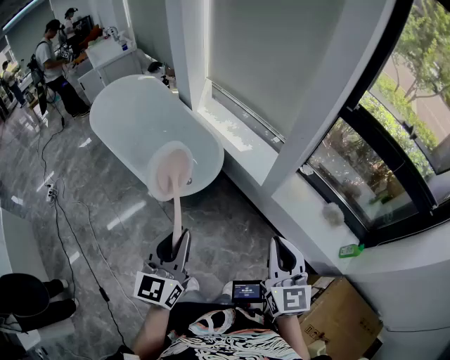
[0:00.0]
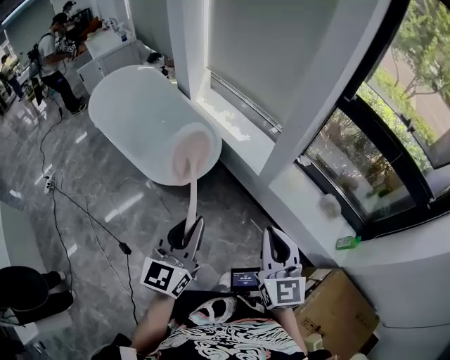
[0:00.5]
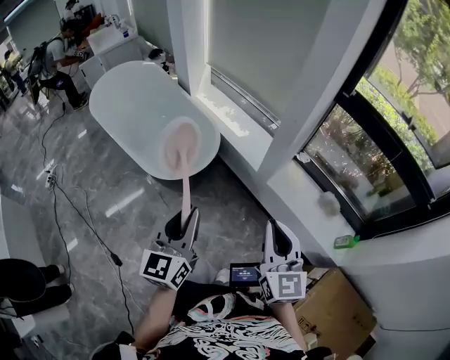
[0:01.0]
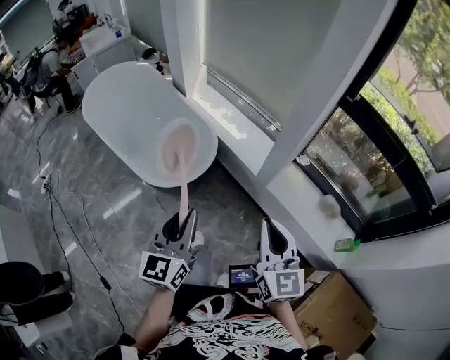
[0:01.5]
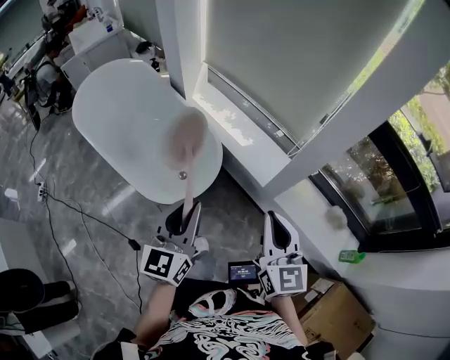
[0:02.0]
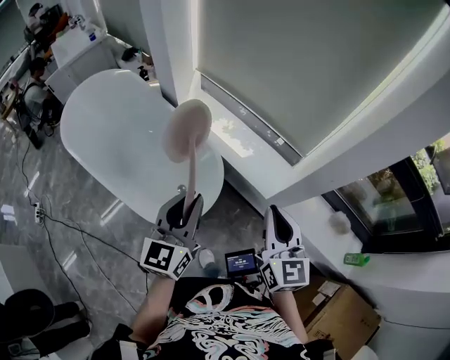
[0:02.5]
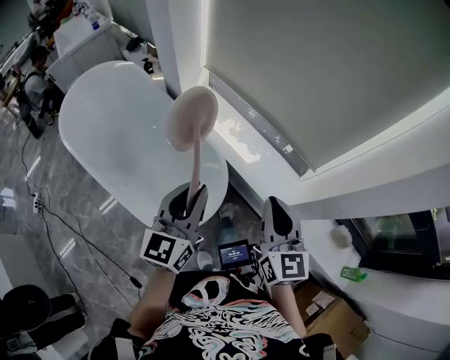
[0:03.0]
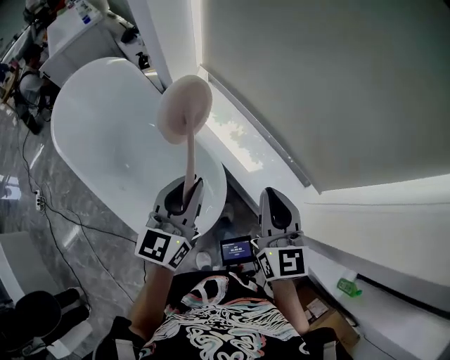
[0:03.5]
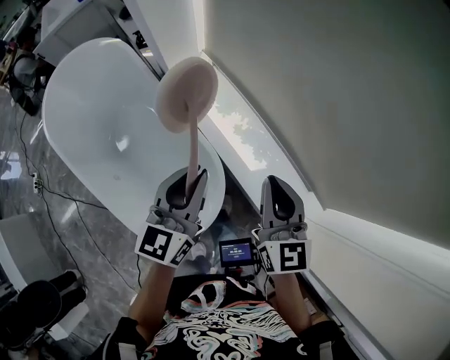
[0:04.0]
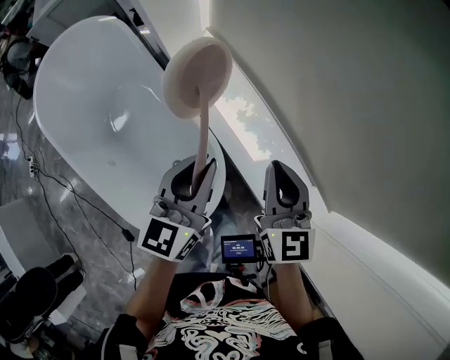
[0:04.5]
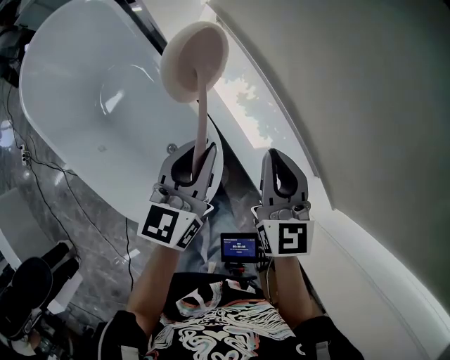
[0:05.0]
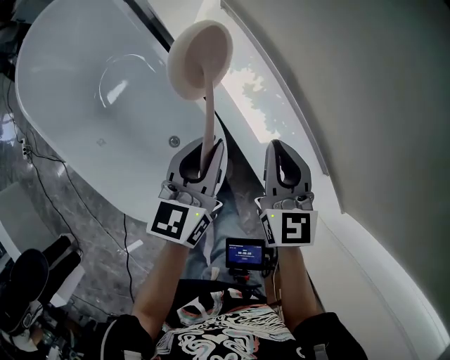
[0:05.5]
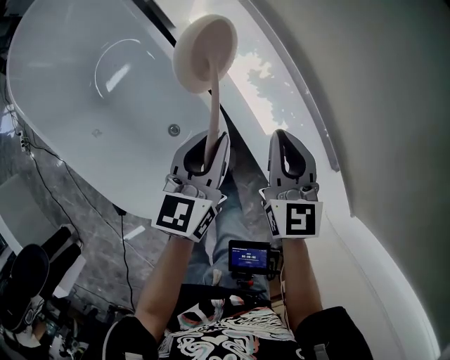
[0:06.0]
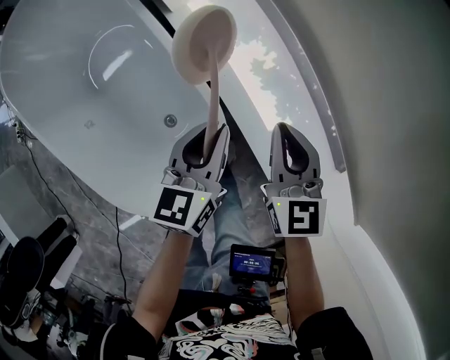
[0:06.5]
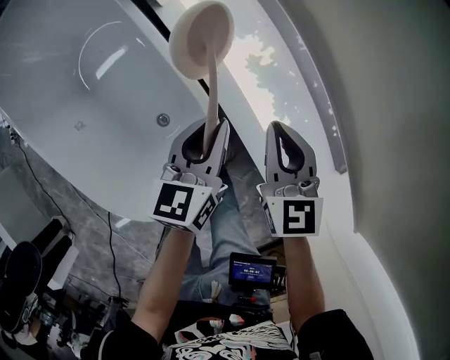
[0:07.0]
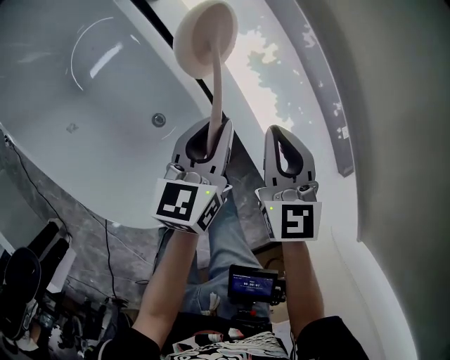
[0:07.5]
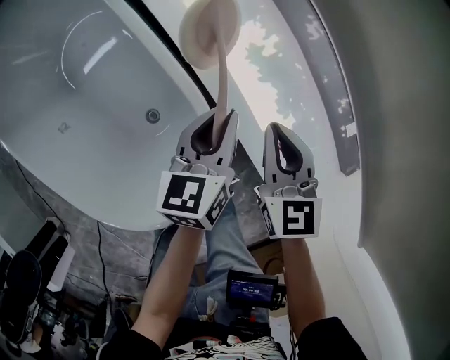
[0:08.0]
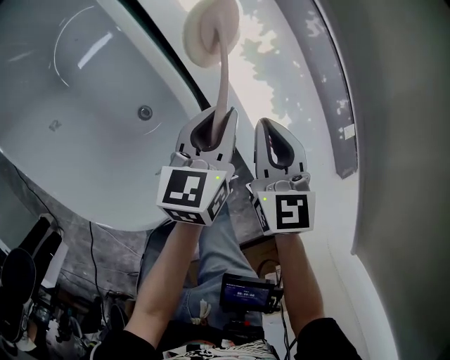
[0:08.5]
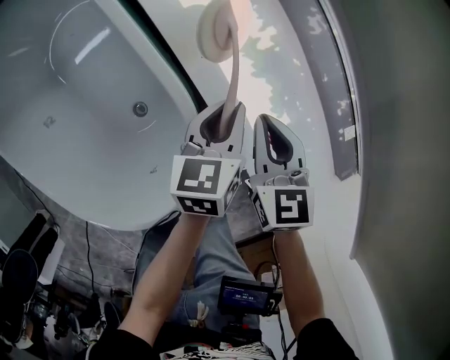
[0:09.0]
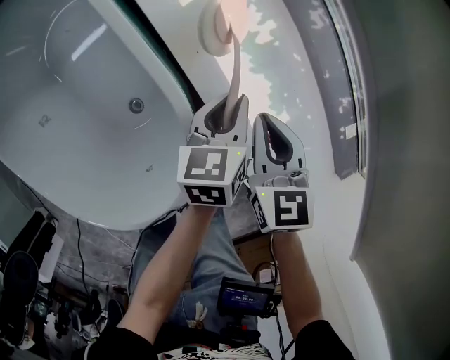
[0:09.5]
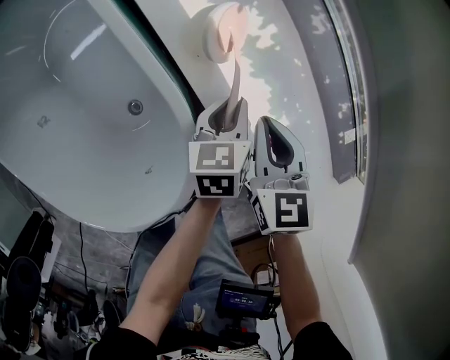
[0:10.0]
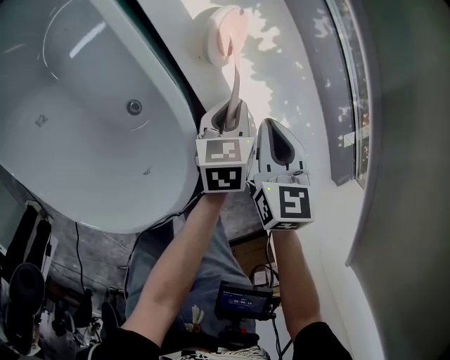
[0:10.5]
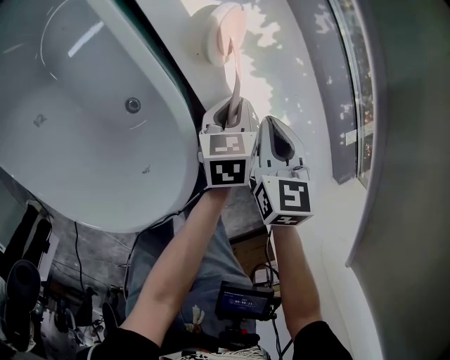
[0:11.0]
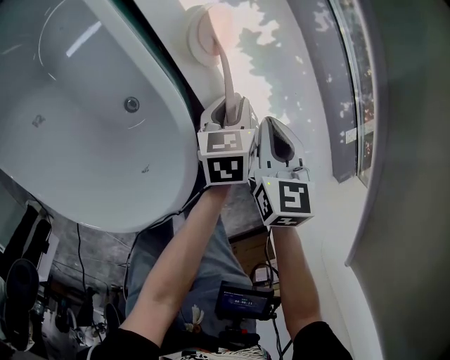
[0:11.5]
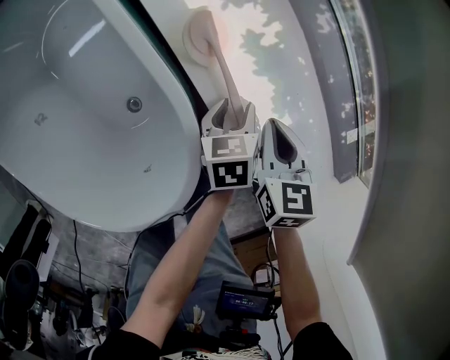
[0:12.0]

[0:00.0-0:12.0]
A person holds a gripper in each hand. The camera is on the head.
0:00.0 to 0:02.0: The grippers both shift forward by some 25 cm.
0:02.0 to 0:04.0: The two grippers travel together, forward, roughly 50 cm.
0:04.0 to 0:06.0: Both grippers travel together downward, some 25 cm.
0:06.0 to 0:08.0: The grippers both shift downward by approximately 15 cm.
0:08.0 to 0:10.0: The right gripper shifts roughly 5 cm downward. The left gripper shifts about 15 cm downward and to the right.
0:10.0 to 0:12.0: The left gripper ends up approximately 5 cm from where it was, and opens its fingers. Meanwhile the right gripper ends up roughly 5 cm from where it was.

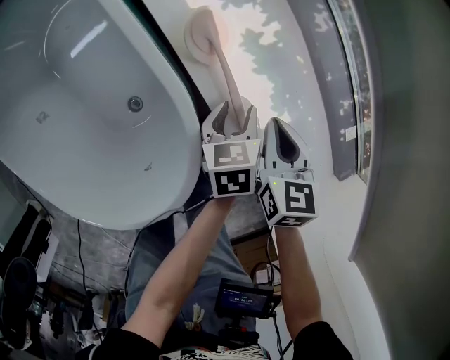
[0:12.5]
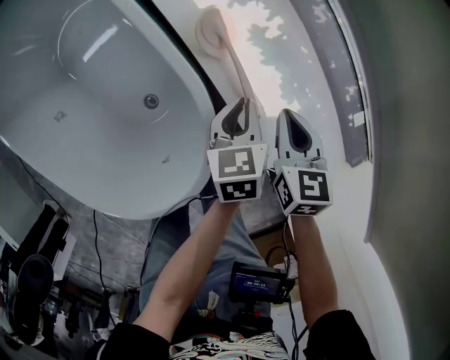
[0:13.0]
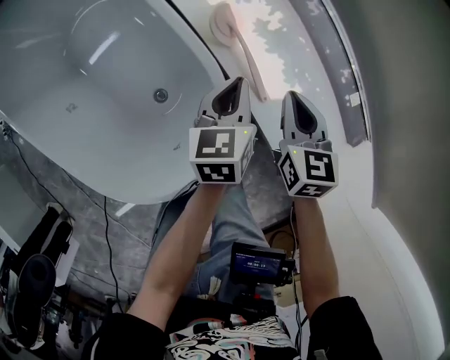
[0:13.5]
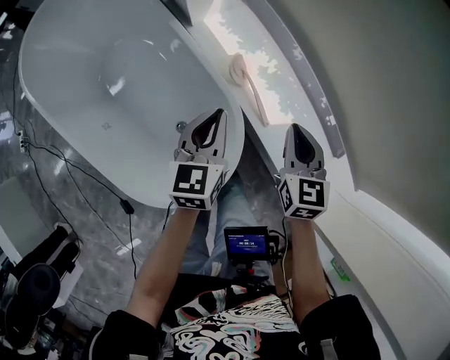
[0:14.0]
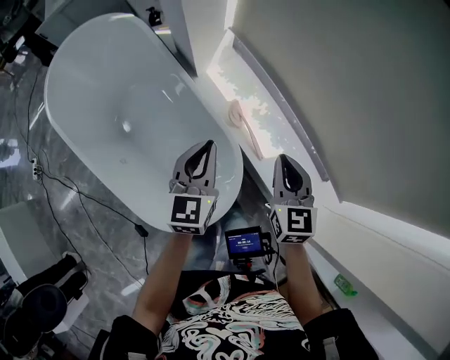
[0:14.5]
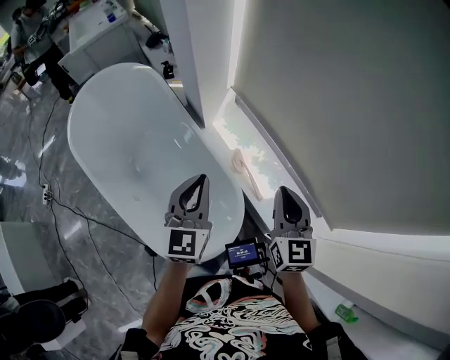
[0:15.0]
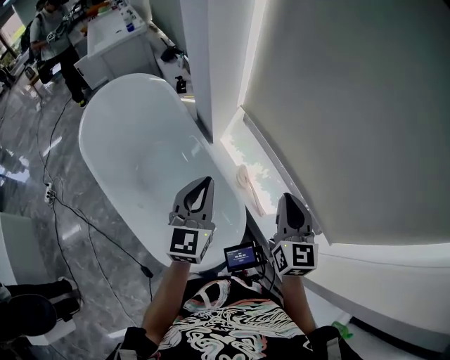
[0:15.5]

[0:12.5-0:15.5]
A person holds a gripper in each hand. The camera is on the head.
0:12.5 to 0:14.0: The right gripper shifts about 30 cm upward, and turns by about 20 degrees. The left gripper moves upward and to the left, roughly 40 cm, tips its fingers upward by roughly 30 degrees, and closes.
0:14.0 to 0:15.5: Both grippers travel together upward, about 25 cm. The left gripper turns by approximately 30 degrees; the right gripper rotates approximately 20 degrees.

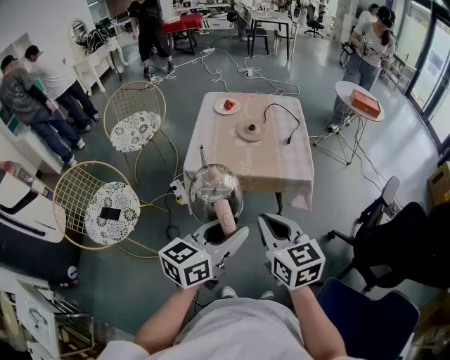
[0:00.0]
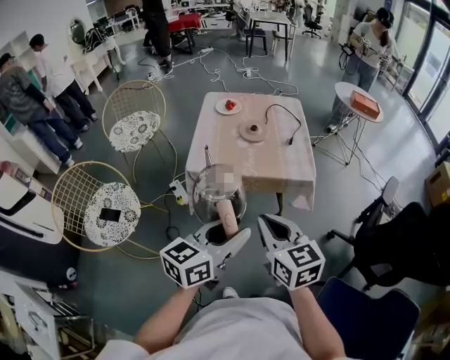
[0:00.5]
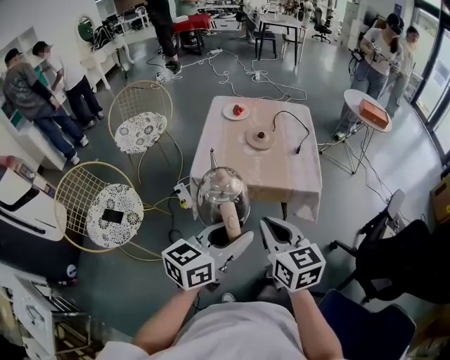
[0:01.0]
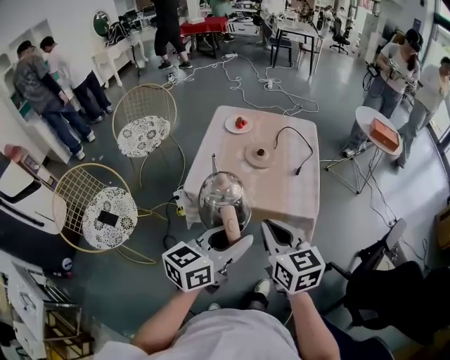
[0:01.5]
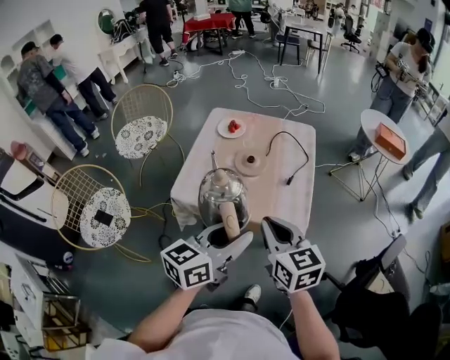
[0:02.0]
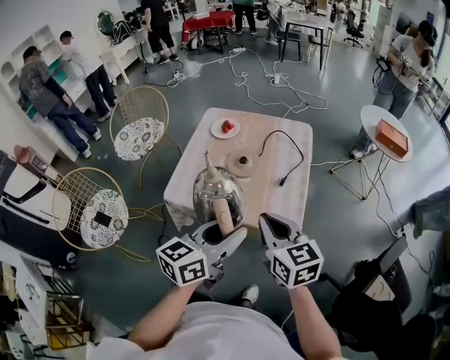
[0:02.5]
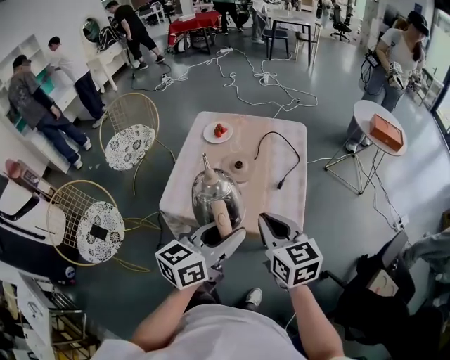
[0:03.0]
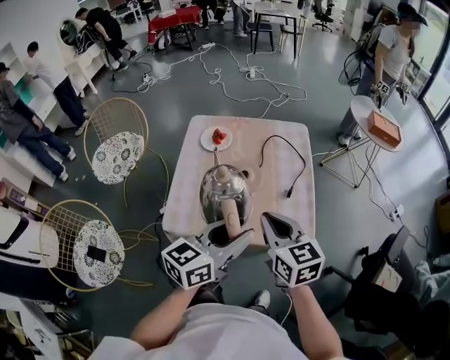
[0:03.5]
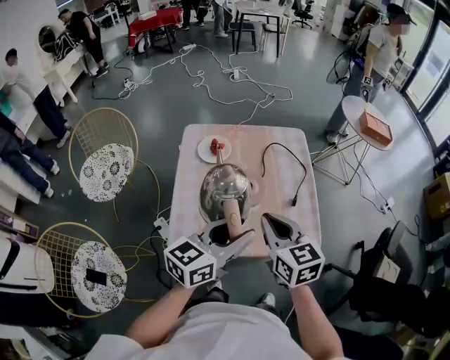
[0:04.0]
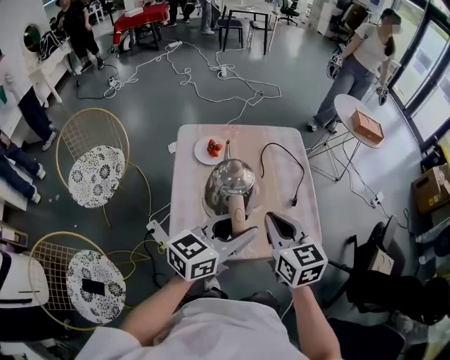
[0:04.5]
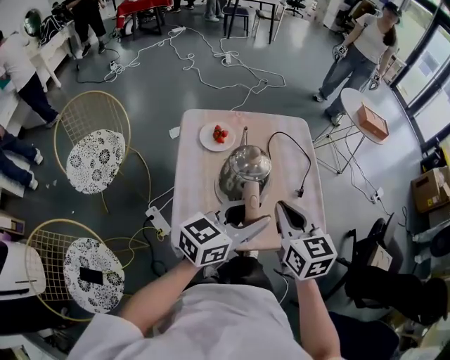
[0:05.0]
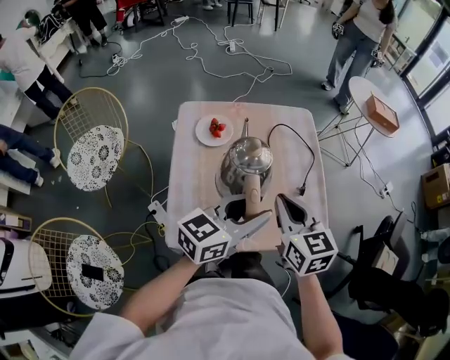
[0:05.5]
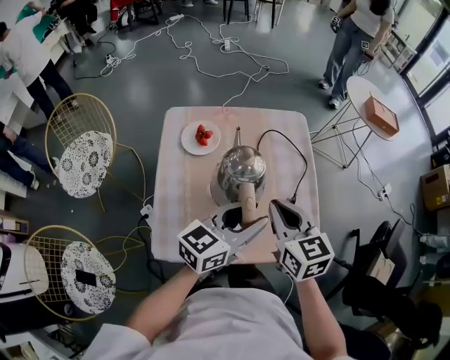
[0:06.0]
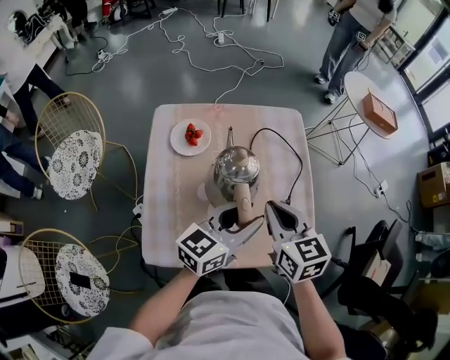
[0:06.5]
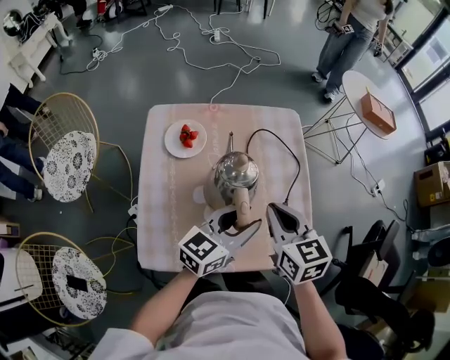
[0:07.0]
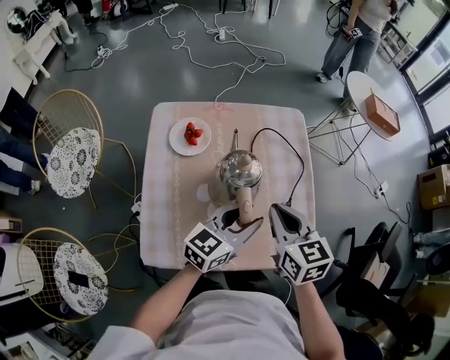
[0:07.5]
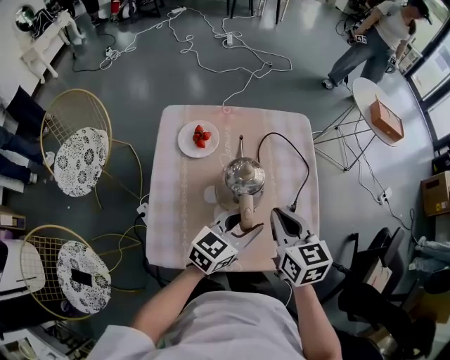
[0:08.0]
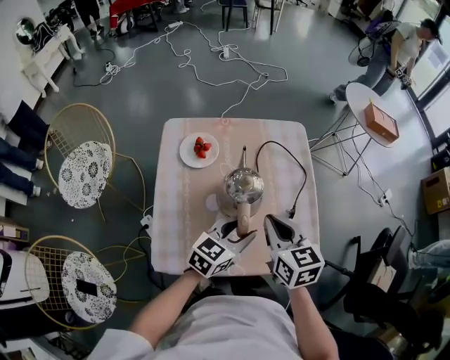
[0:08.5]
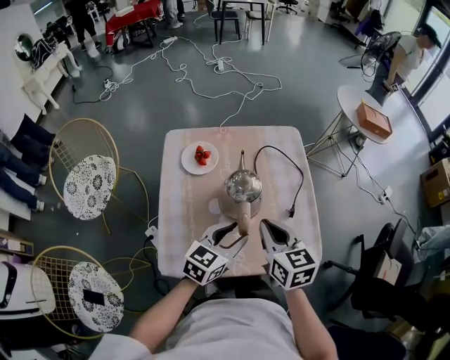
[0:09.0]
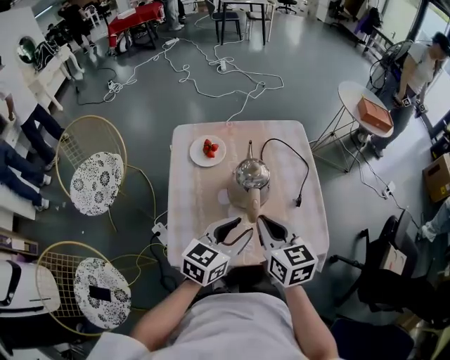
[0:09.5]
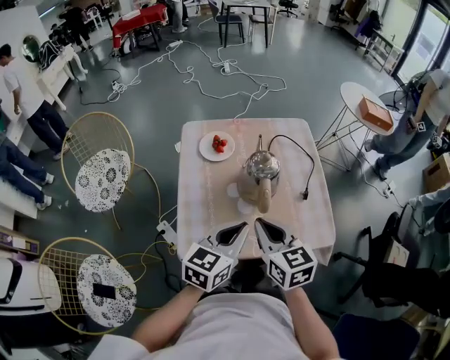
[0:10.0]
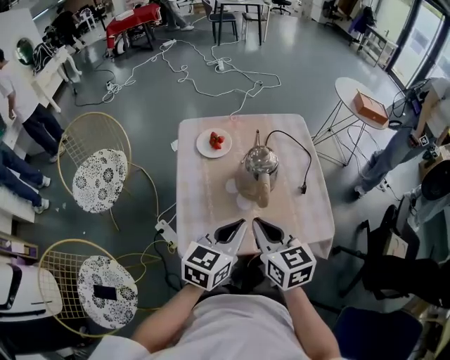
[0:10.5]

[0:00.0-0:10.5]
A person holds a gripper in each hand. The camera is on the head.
0:00.0 to 0:02.0: The right gripper moves forward, some 20 cm. Meanwhile the left gripper moves forward and to the right, about 20 cm.
0:02.0 to 0:04.0: The grippers both shift forward and to the left by roughly 20 cm.
0:04.0 to 0:06.5: Both grippers move forward and downward, approximately 15 cm.
0:06.5 to 0:08.5: The left gripper goes some 10 cm downward.
0:08.5 to 0:10.5: The right gripper heads backward and to the left, covering approximately 15 cm. Meanwhile the left gripper is displaced backward, to the left and upward by about 15 cm, and closes up.

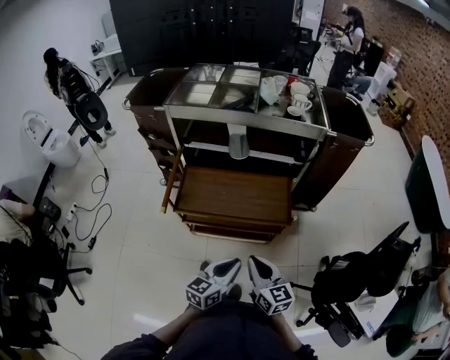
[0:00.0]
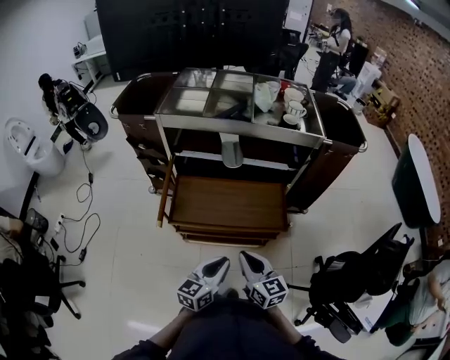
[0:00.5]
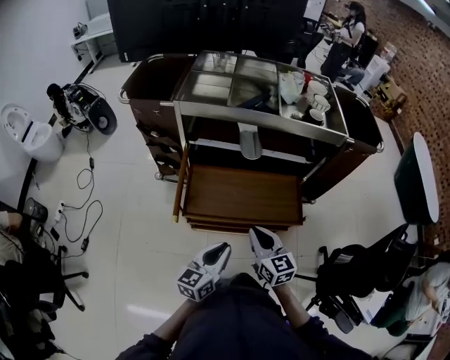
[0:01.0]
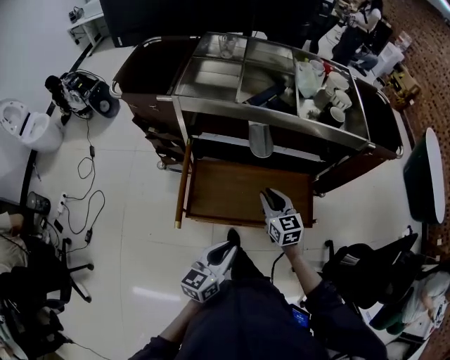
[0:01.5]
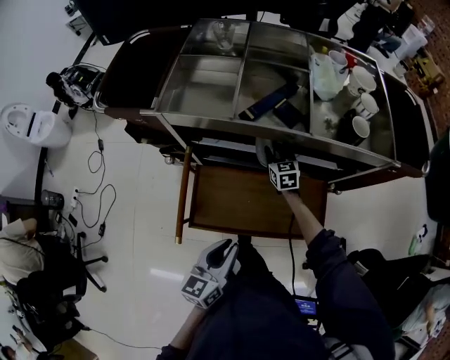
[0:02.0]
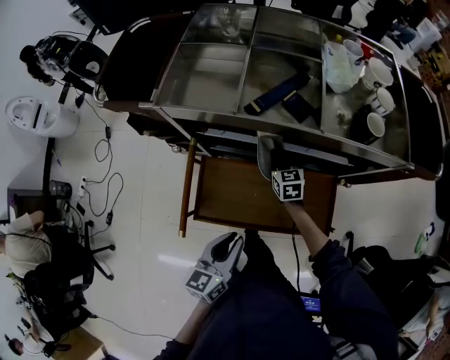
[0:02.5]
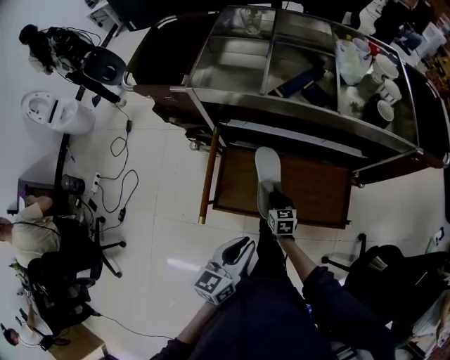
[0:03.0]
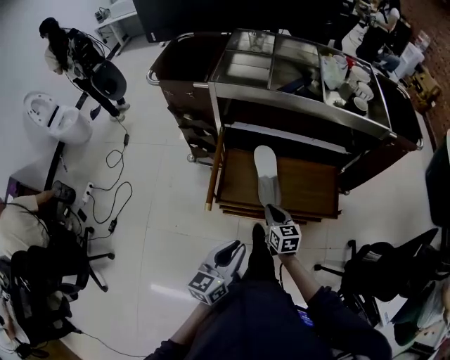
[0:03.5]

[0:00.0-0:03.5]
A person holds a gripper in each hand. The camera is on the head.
0:00.0 to 0:02.0: The right gripper moves forward, some 60 cm, turns by approximately 30 degrees, and opens up, while the left gripper goes roughly 30 cm forward and to the left.
0:02.0 to 0:03.5: The right gripper shifts approximately 40 cm backward, and closes its fingers; the left gripper moves backward, about 20 cm.
